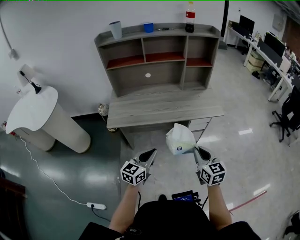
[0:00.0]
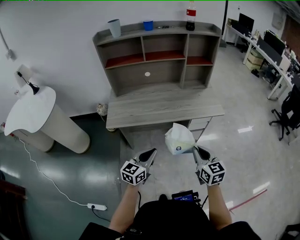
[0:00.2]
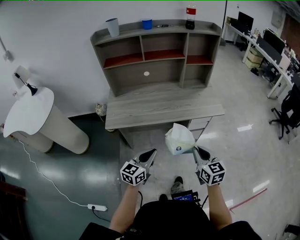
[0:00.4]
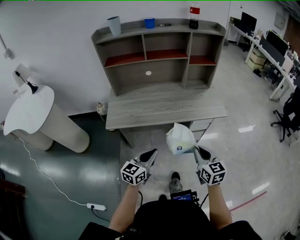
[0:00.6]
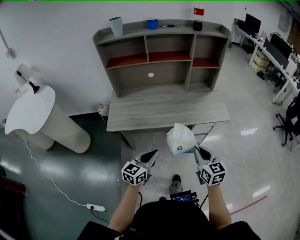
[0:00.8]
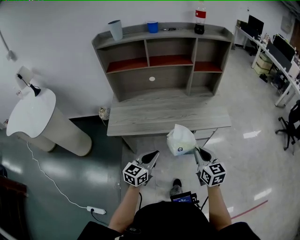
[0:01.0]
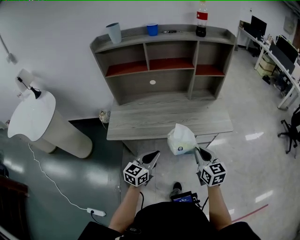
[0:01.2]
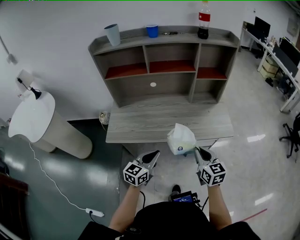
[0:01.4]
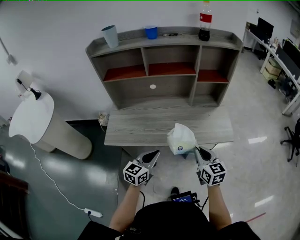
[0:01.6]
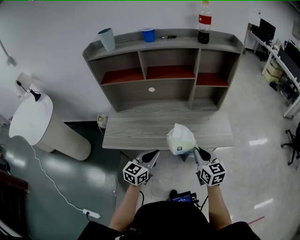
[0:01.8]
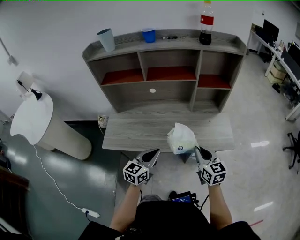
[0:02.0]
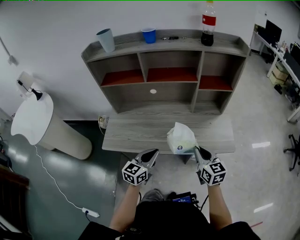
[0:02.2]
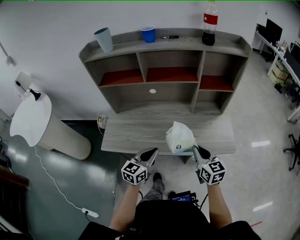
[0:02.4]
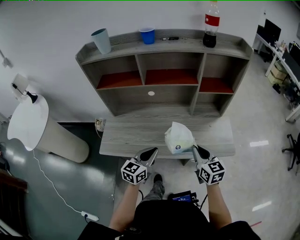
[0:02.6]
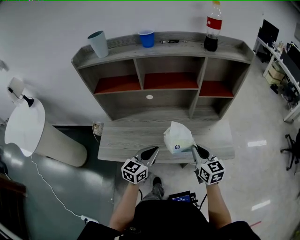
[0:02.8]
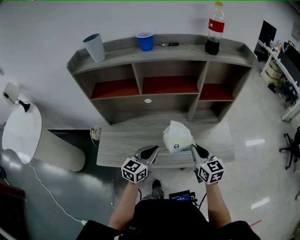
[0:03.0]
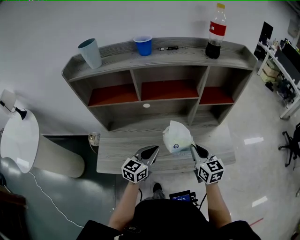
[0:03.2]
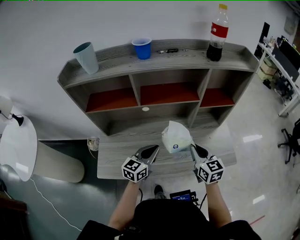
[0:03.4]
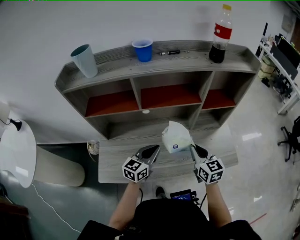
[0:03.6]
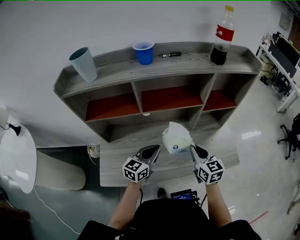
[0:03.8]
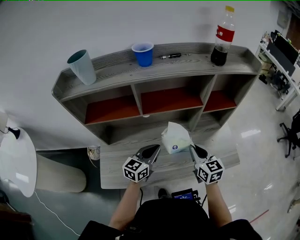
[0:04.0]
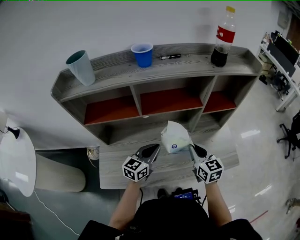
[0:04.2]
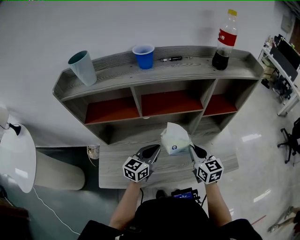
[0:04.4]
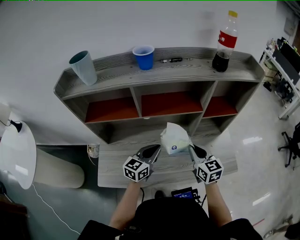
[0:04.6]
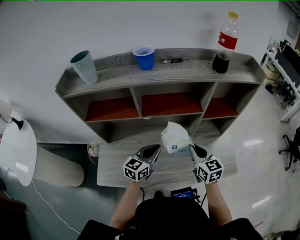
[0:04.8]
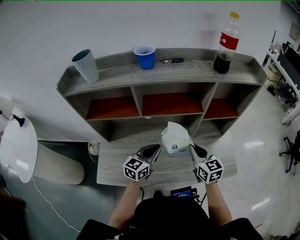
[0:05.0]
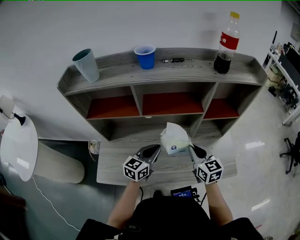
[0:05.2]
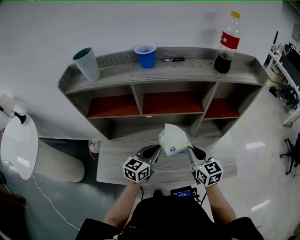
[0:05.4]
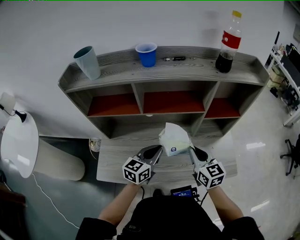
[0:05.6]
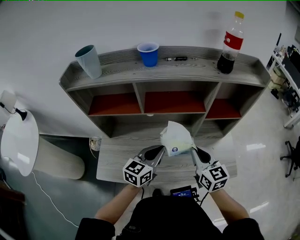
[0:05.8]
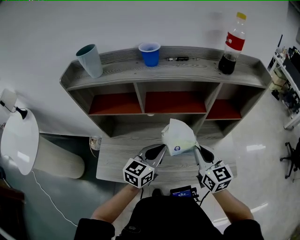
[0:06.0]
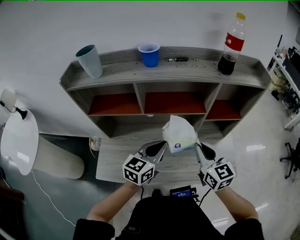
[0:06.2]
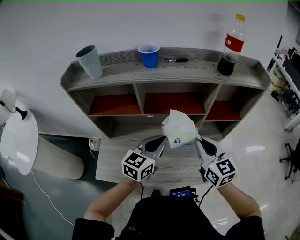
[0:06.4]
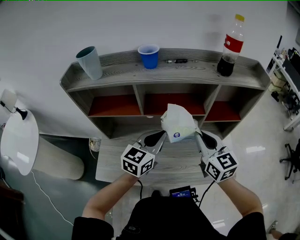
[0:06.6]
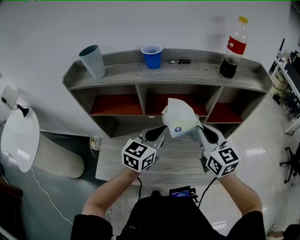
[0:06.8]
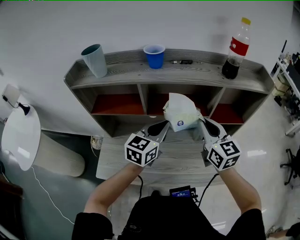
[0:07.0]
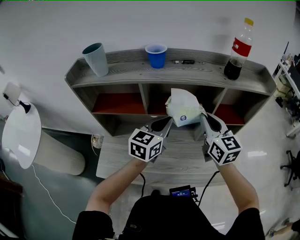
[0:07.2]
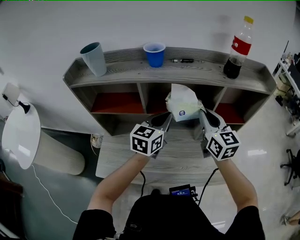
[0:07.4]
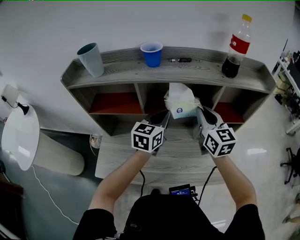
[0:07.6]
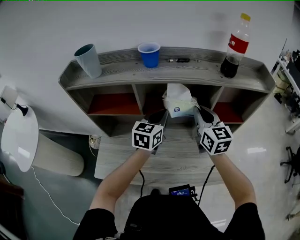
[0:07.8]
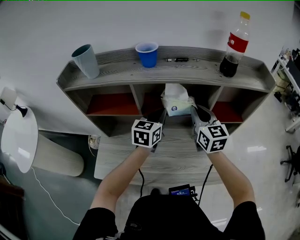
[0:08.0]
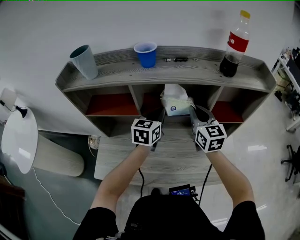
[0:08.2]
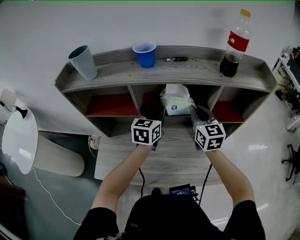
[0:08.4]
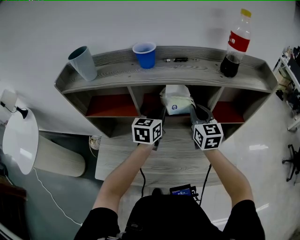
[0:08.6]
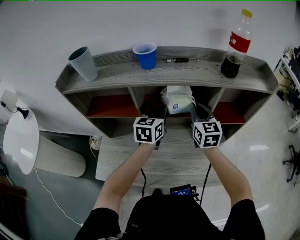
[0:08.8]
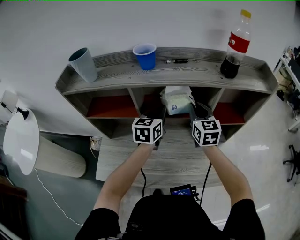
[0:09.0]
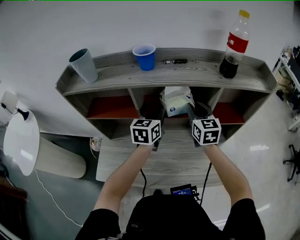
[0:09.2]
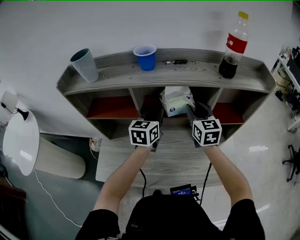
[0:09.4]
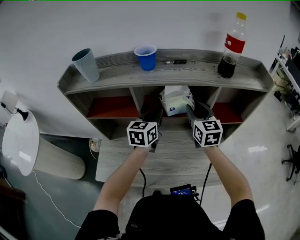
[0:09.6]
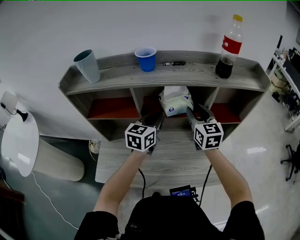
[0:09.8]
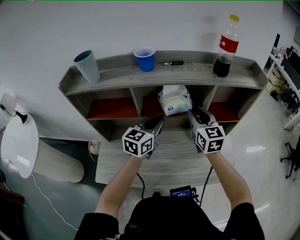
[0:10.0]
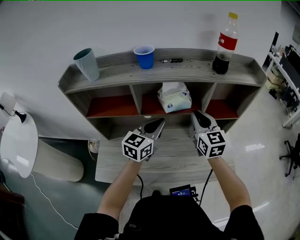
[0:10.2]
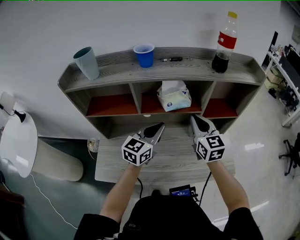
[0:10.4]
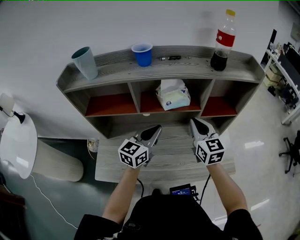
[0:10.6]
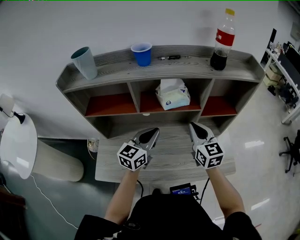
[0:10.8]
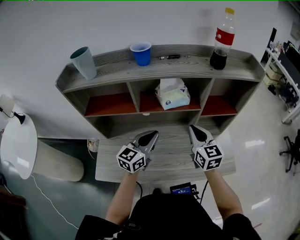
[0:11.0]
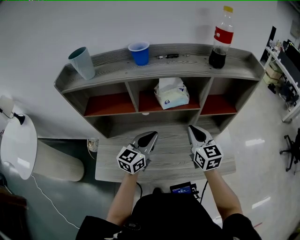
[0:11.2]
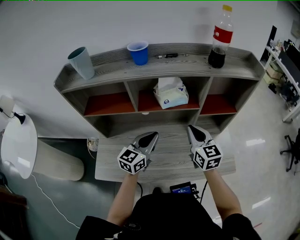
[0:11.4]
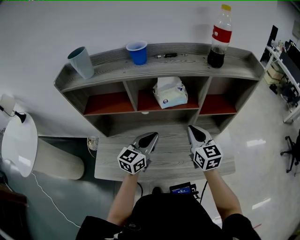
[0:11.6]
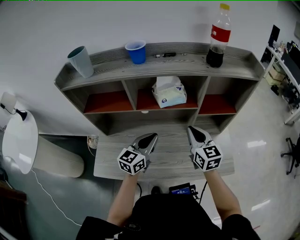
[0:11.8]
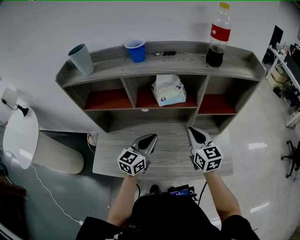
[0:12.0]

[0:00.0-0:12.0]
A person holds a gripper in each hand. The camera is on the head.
0:00.0 to 0:01.6: The two grippers go some 20 cm forward.
0:01.6 to 0:03.0: Both grippers move forward, about 20 cm.
0:03.0 to 0:04.4: The right gripper is displaced forward and to the left by some 10 cm, while the left gripper travels forward by some 10 cm.
0:04.4 to 0:06.0: The two grippers go roughly 5 cm upward.
0:06.0 to 0:07.6: The two grippers go roughly 15 cm forward and upward.
0:07.6 to 0:09.0: The left gripper is displaced forward by roughly 5 cm. The right gripper is displaced forward and downward by roughly 10 cm.
0:09.0 to 0:10.4: Both grippers move backward, about 10 cm. The left gripper swivels some 20 degrees. Meanwhile the right gripper opens and closes again.
0:10.4 to 0:12.0: The grippers both shift downward by roughly 5 cm.

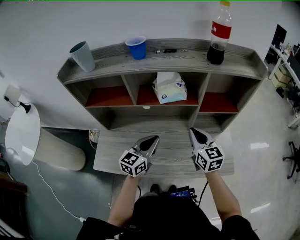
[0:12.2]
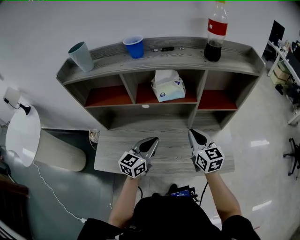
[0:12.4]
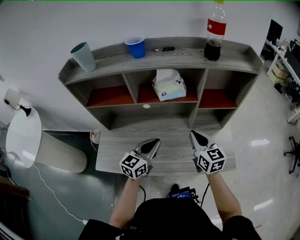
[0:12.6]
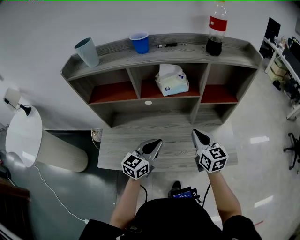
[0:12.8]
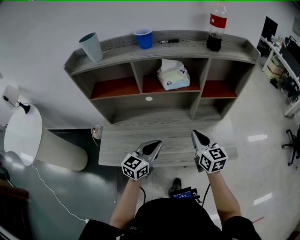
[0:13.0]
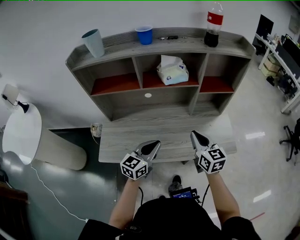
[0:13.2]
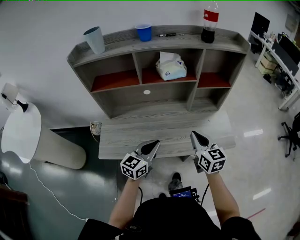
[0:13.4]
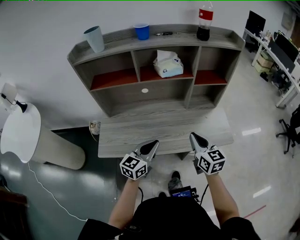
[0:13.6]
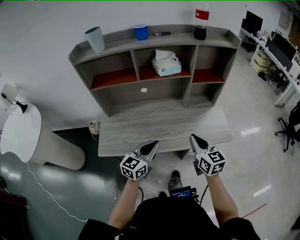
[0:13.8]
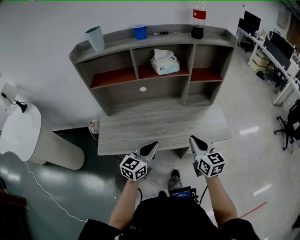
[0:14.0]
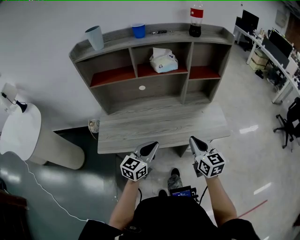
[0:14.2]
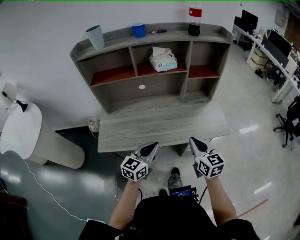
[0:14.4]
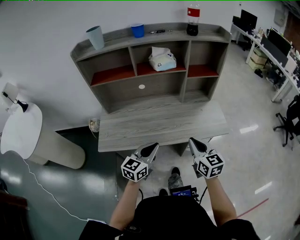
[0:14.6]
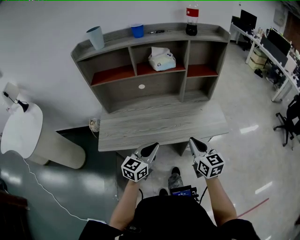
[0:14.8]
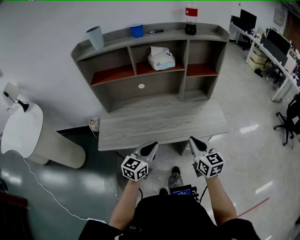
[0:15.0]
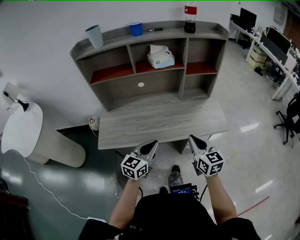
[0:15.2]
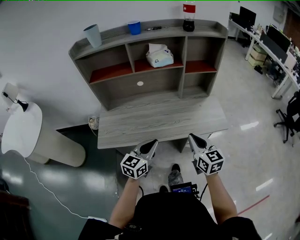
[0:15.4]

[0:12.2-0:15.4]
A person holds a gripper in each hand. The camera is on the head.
0:12.2 to 0:13.8: Both grippers travel together backward, some 20 cm.
0:13.8 to 0:15.4: The grippers both shift backward by about 5 cm.

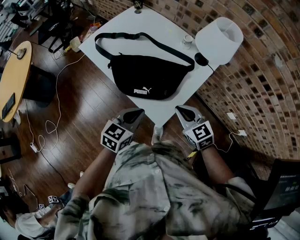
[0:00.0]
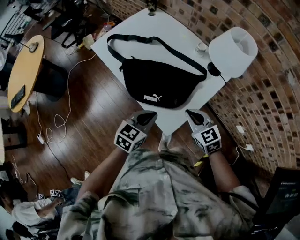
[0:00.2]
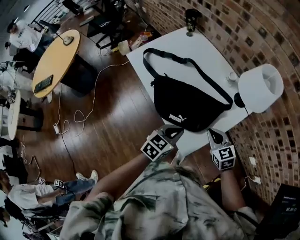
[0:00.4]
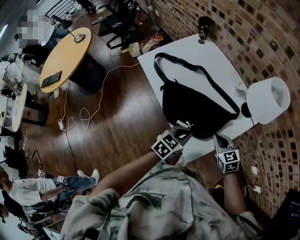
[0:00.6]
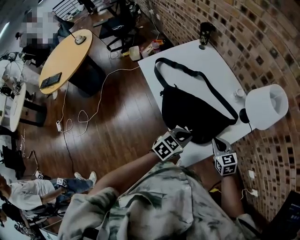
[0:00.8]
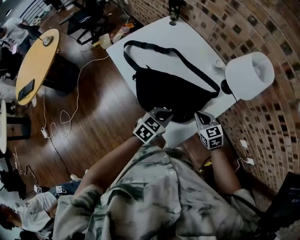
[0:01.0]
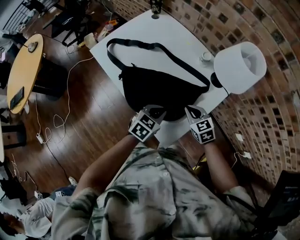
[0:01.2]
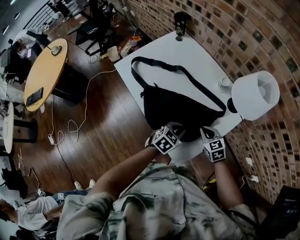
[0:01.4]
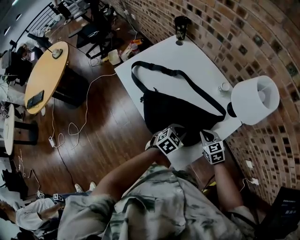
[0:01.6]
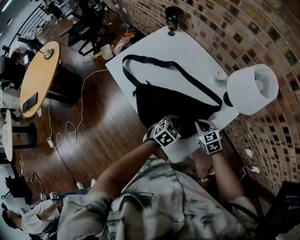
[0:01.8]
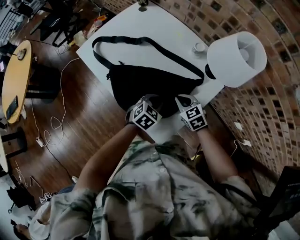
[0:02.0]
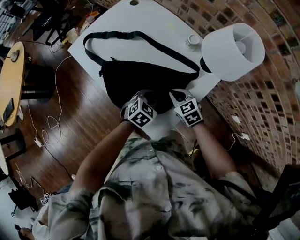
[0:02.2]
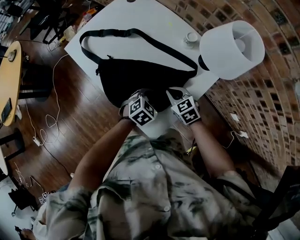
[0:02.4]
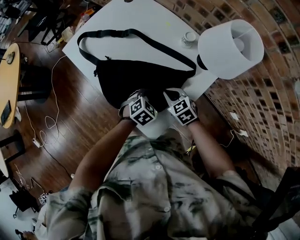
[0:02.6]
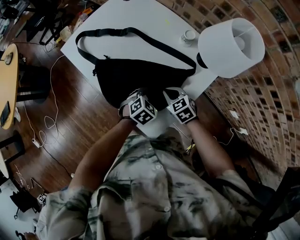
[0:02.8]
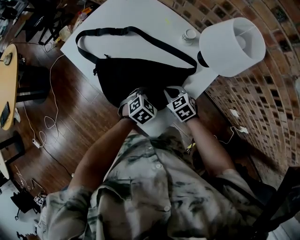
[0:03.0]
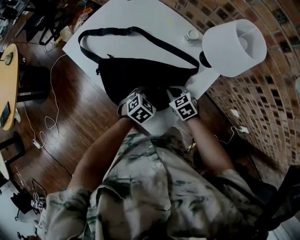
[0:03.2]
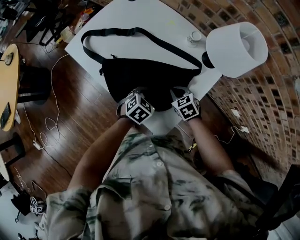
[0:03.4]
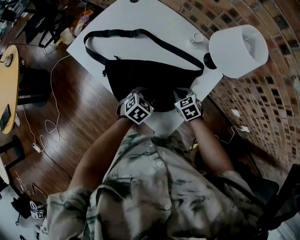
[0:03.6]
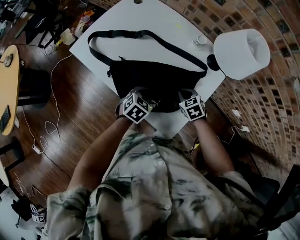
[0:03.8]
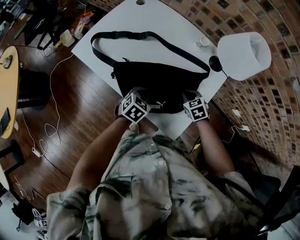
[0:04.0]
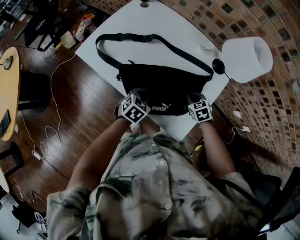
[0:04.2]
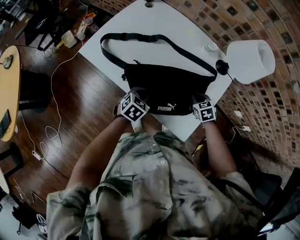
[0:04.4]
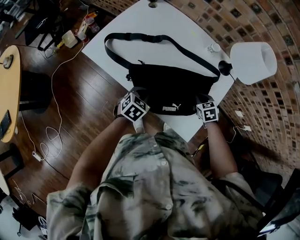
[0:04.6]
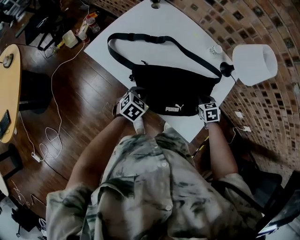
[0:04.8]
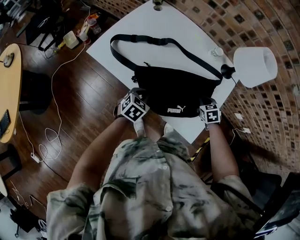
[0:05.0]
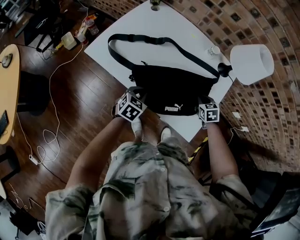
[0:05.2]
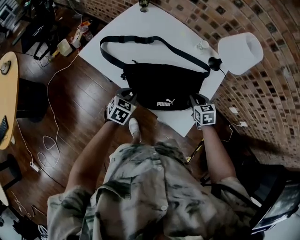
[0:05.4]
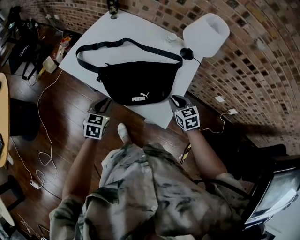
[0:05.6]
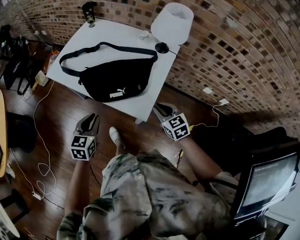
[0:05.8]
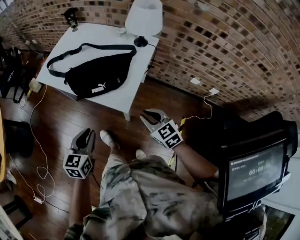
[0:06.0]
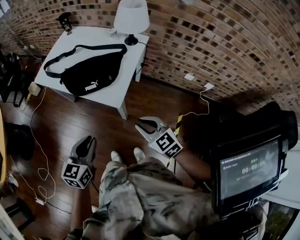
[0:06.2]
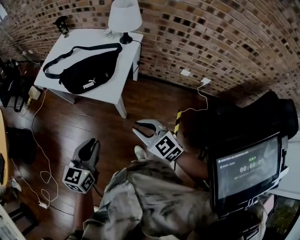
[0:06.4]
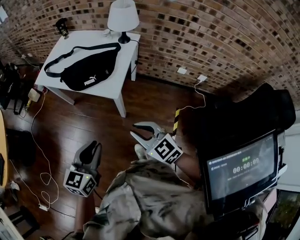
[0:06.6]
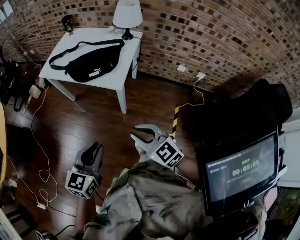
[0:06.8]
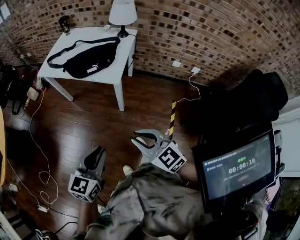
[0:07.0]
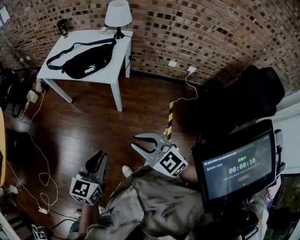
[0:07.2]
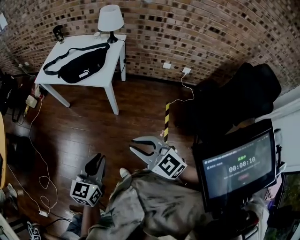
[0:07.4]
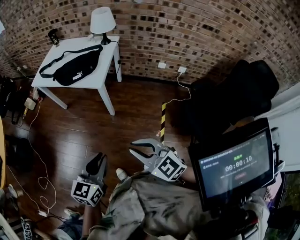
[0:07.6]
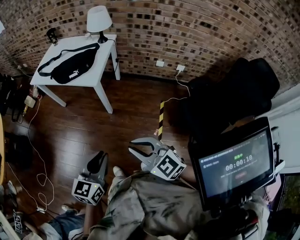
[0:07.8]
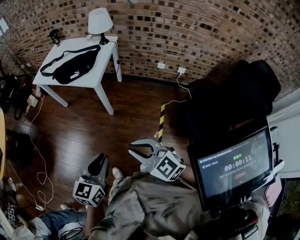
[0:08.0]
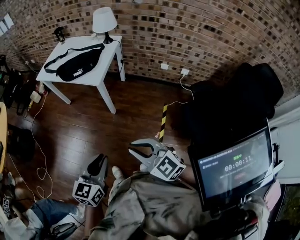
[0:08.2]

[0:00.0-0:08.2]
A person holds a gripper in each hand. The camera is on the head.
0:00.0 to 0:01.6: The right gripper shifts some 20 cm forward and downward; the left gripper moves forward, downward and to the right, approximately 20 cm.
0:01.6 to 0:03.2: The right gripper changes place by roughly 5 cm.
0:03.2 to 0:05.0: The left gripper travels to the left by roughly 20 cm, while the right gripper rotates roughly 30 degrees.
0:05.0 to 0:06.6: The two grippers travel together, backward, approximately 50 cm. The two grippers go approximately 25 cm upward. The left gripper rotates roughly 30 degrees. Meanwhile the right gripper tips its fingers upward by about 40 degrees.
0:06.6 to 0:08.2: The right gripper moves backward, about 30 cm; the left gripper shifts some 30 cm backward and to the right.
